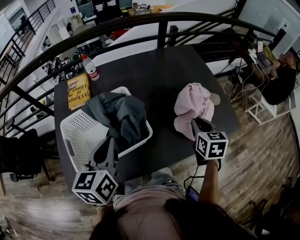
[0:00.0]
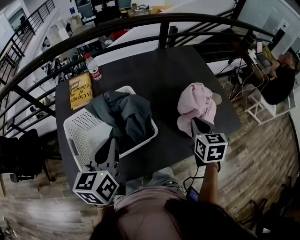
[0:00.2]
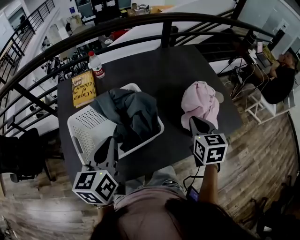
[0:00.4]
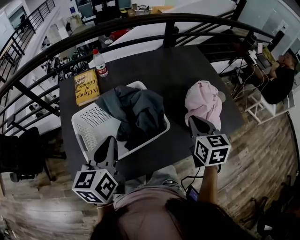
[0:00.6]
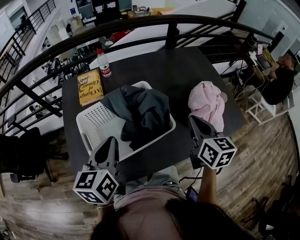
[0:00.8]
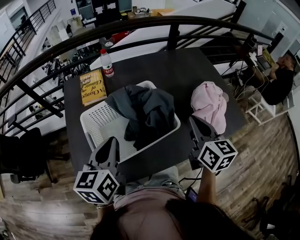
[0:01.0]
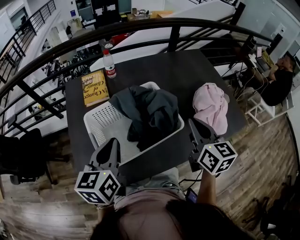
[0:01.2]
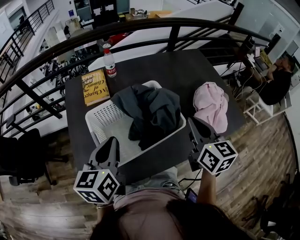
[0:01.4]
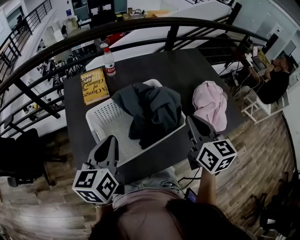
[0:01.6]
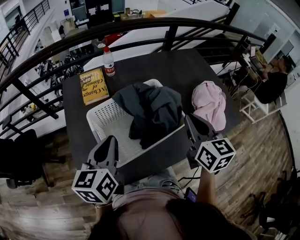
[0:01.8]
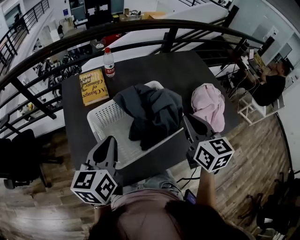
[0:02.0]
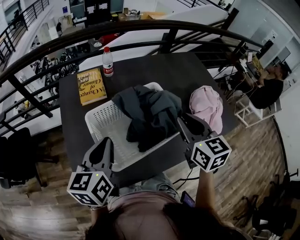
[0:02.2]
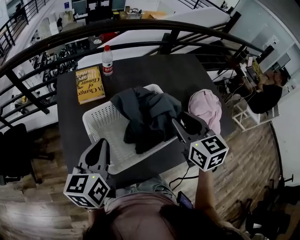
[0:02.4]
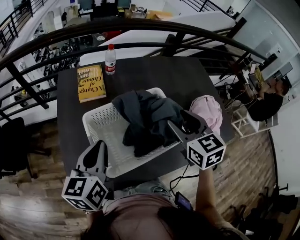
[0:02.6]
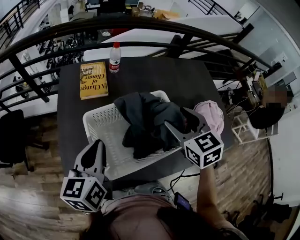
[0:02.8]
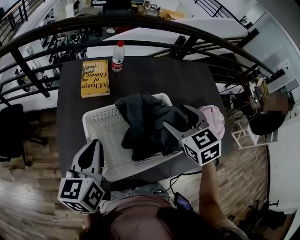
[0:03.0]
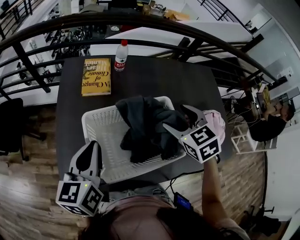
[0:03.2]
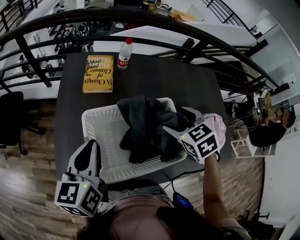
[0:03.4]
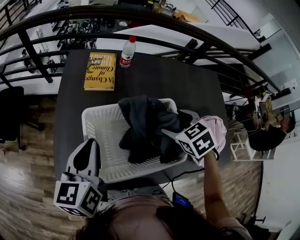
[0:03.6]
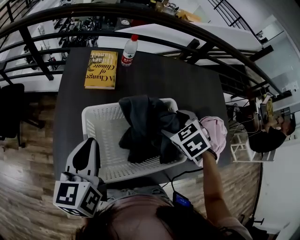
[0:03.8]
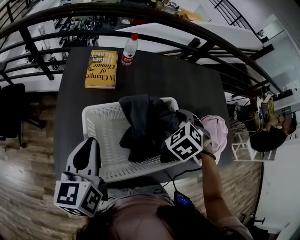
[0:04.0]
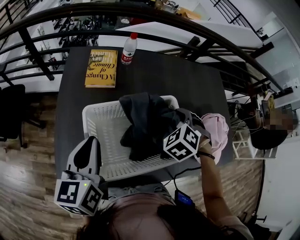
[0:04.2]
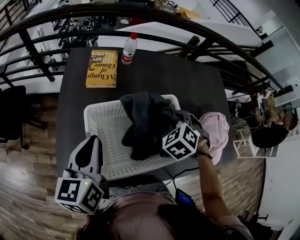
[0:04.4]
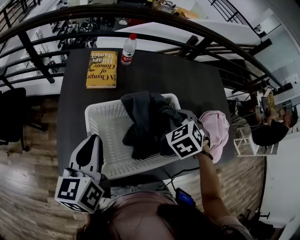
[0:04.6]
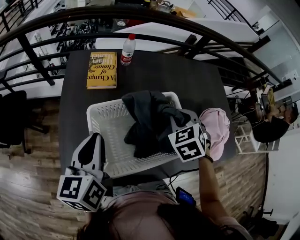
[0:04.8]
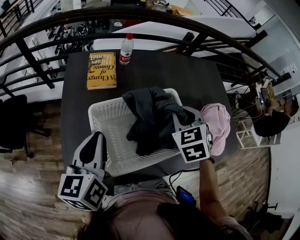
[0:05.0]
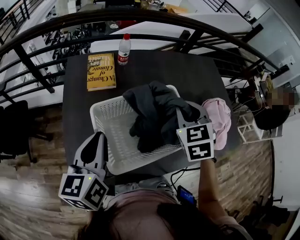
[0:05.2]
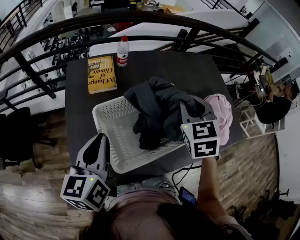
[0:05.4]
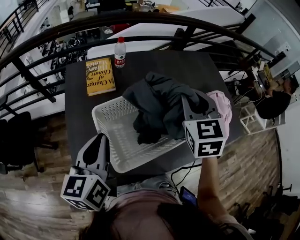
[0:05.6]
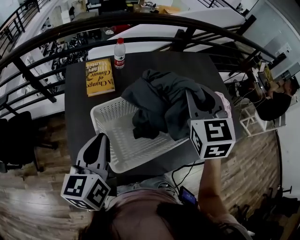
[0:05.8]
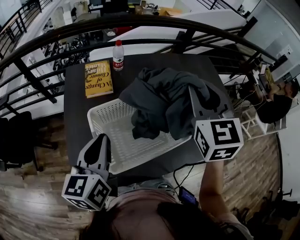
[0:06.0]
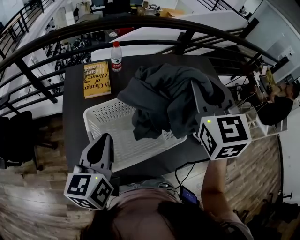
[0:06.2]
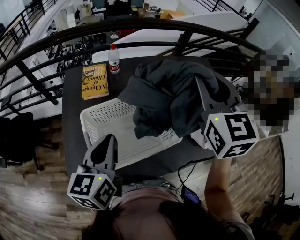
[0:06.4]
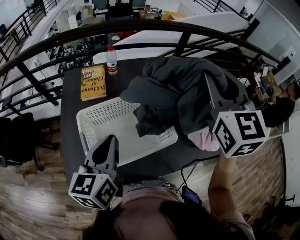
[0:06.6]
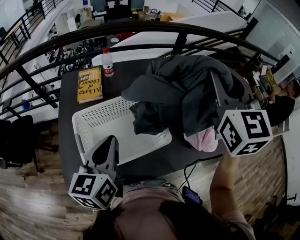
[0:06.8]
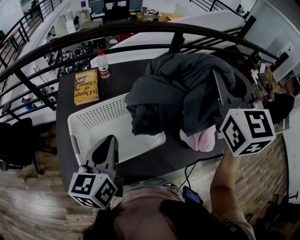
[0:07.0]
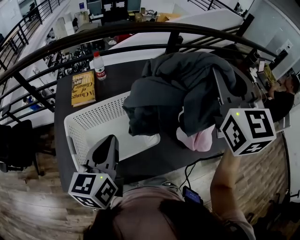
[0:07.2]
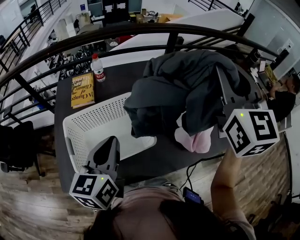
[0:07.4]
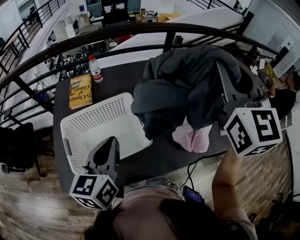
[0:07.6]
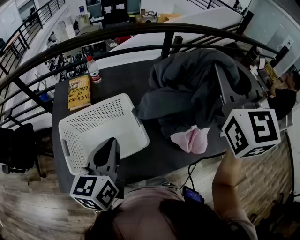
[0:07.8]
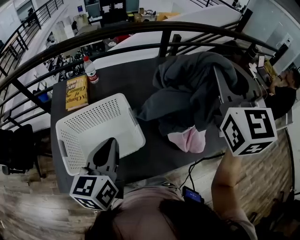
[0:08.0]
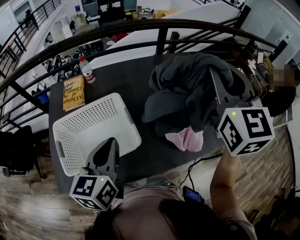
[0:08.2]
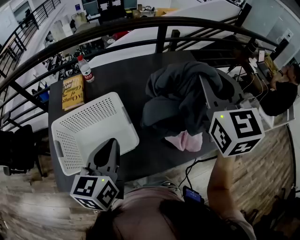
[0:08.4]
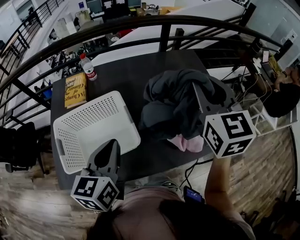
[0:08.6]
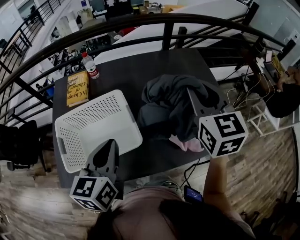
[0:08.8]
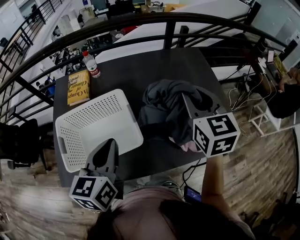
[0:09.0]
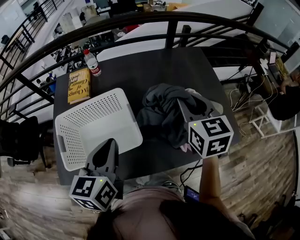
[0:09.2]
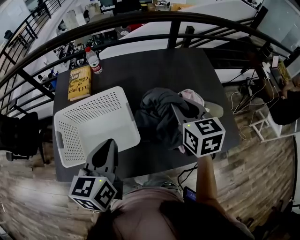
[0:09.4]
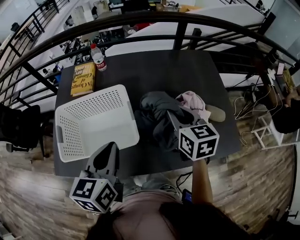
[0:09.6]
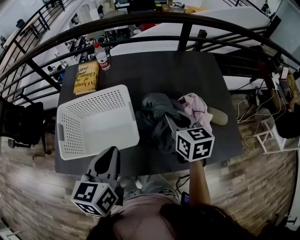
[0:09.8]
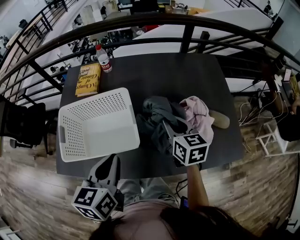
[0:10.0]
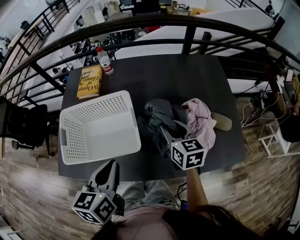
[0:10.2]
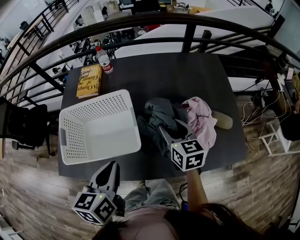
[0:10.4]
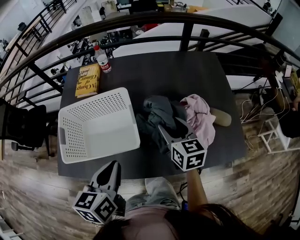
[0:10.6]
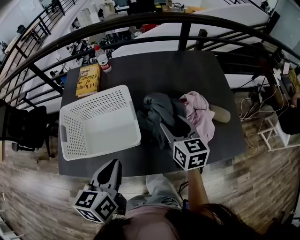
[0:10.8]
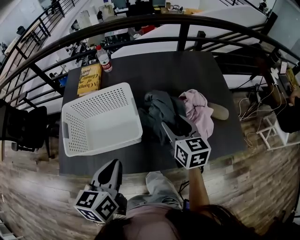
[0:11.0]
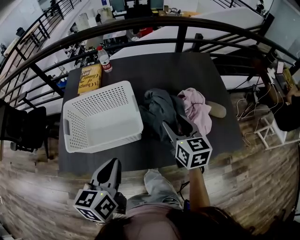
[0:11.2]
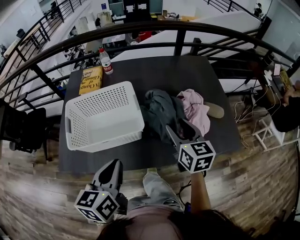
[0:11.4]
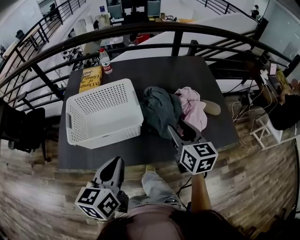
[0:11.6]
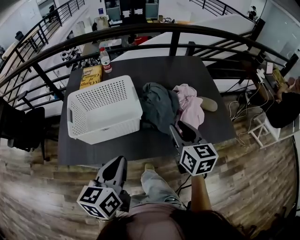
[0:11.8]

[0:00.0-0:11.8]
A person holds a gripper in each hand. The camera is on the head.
0:00.0 to 0:01.4: The left gripper shifts some 15 cm to the left, while the right gripper goes approximately 20 cm to the left and upward, and swivels some 20 degrees.
0:01.4 to 0:03.0: The left gripper travels to the left by some 5 cm, while the right gripper is displaced forward and to the left by roughly 15 cm, changes its angle by some 40 degrees, and opens up.
0:03.0 to 0:04.4: The right gripper moves downward, some 10 cm, changes its angle by about 40 degrees, and closes.
0:04.4 to 0:06.0: The right gripper moves upward, some 25 cm, and angles its fingers upward, by about 40 degrees.
0:06.0 to 0:07.4: The left gripper moves to the right, approximately 20 cm, while the right gripper shifts about 25 cm to the right and upward.
0:07.4 to 0:08.8: The left gripper heads to the right, covering some 5 cm; the right gripper heads downward, covering some 15 cm.
0:08.8 to 0:10.4: The right gripper is displaced downward by about 20 cm, and turns by roughly 30 degrees. The left gripper moves backward and downward, about 5 cm.
0:10.4 to 0:11.8: The right gripper heads backward and upward, covering approximately 20 cm. Meanwhile the left gripper moves backward, approximately 15 cm.

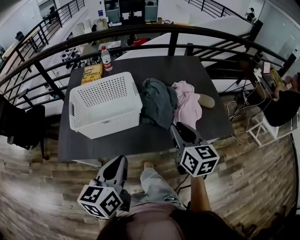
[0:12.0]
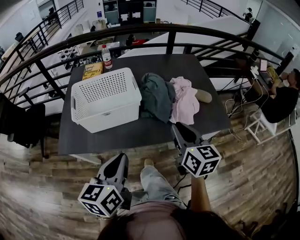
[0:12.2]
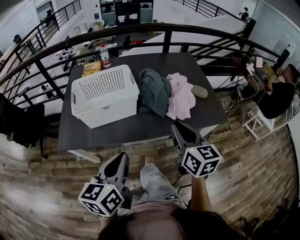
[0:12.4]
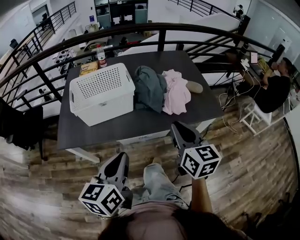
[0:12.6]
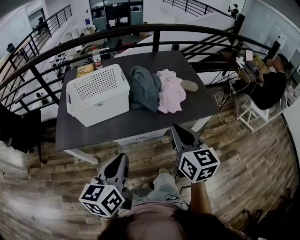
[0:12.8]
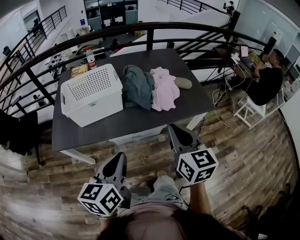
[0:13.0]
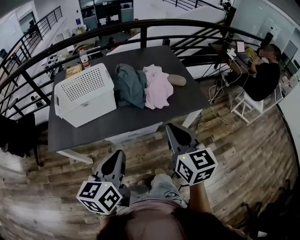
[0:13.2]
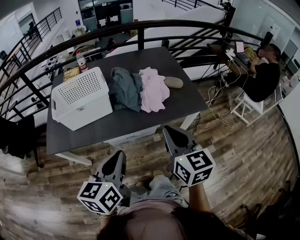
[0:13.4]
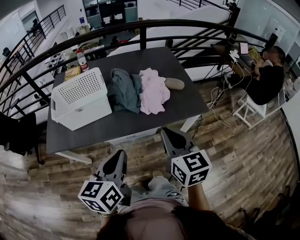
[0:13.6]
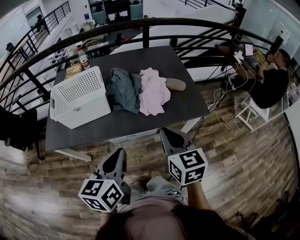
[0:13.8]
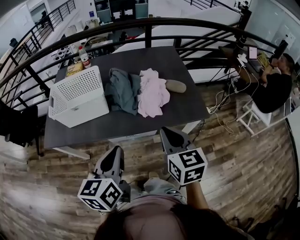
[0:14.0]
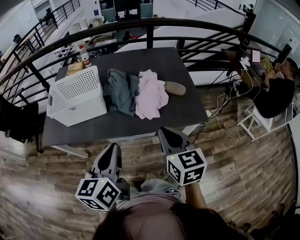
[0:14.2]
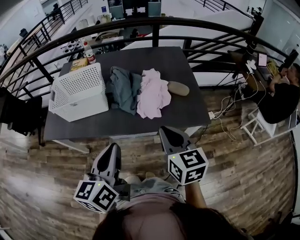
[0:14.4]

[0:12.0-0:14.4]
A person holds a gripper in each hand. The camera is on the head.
0:12.0 to 0:13.2: The right gripper heads backward, covering about 20 cm; the left gripper goes roughly 15 cm backward and to the right.
0:13.2 to 0:14.4: The two grippers go about 15 cm to the right and forward.

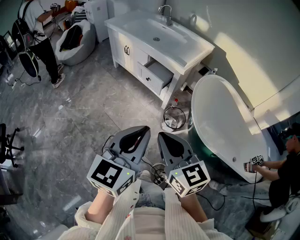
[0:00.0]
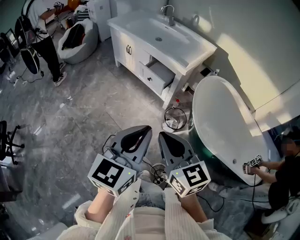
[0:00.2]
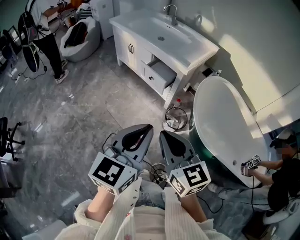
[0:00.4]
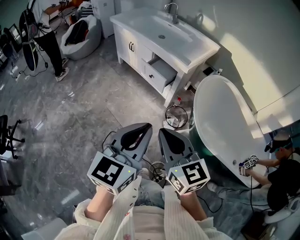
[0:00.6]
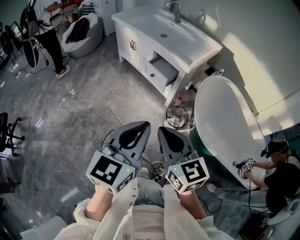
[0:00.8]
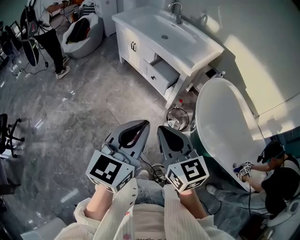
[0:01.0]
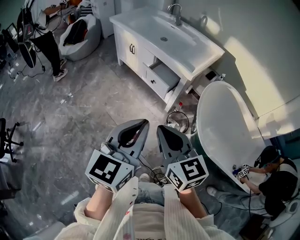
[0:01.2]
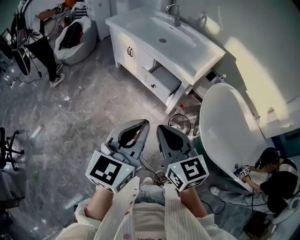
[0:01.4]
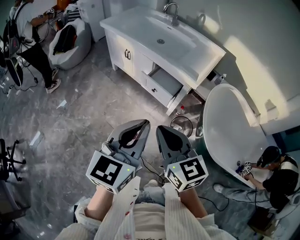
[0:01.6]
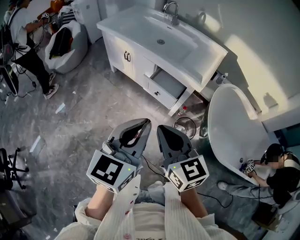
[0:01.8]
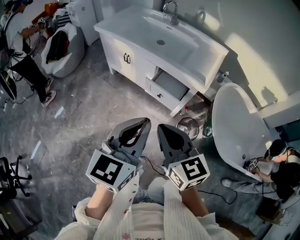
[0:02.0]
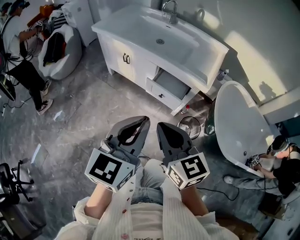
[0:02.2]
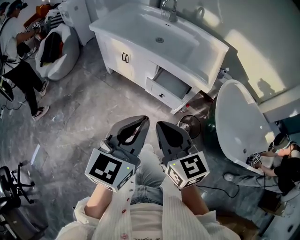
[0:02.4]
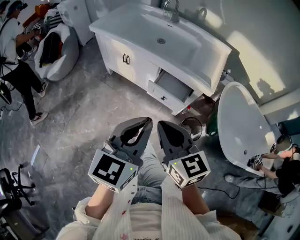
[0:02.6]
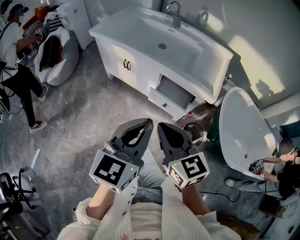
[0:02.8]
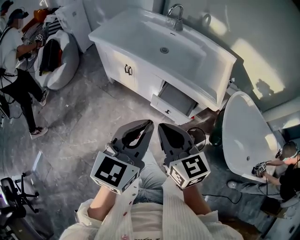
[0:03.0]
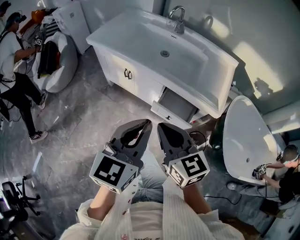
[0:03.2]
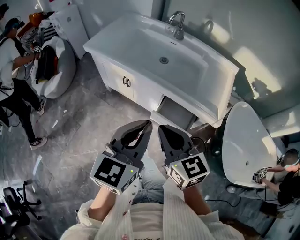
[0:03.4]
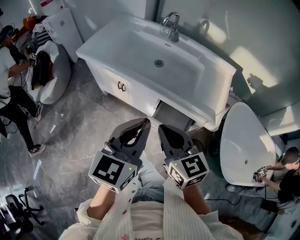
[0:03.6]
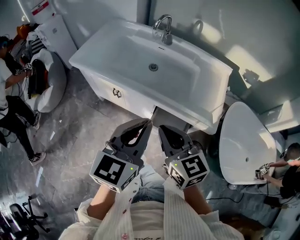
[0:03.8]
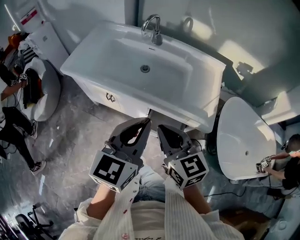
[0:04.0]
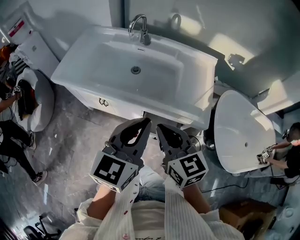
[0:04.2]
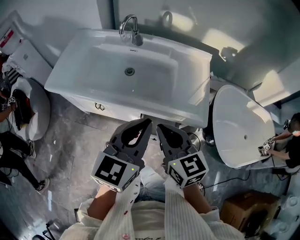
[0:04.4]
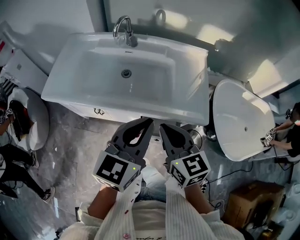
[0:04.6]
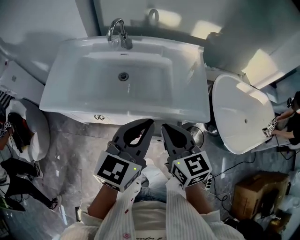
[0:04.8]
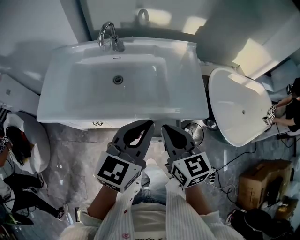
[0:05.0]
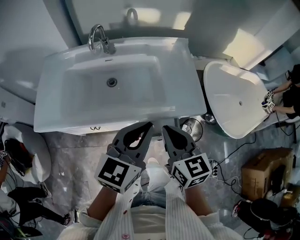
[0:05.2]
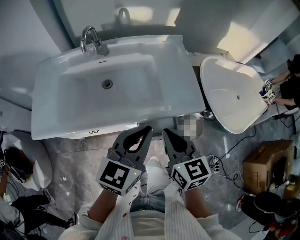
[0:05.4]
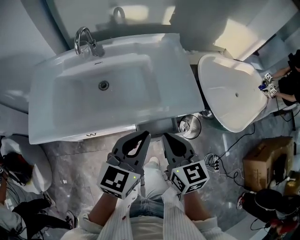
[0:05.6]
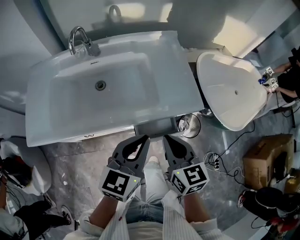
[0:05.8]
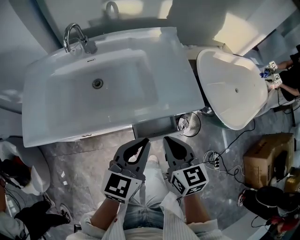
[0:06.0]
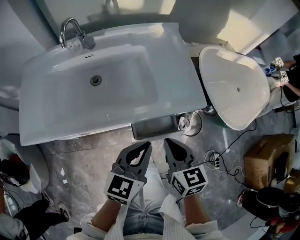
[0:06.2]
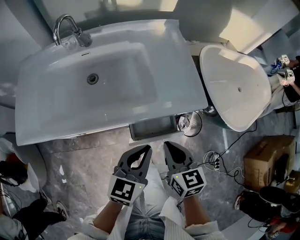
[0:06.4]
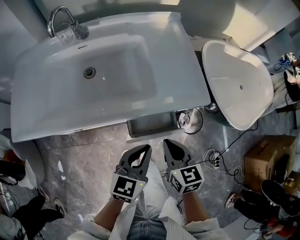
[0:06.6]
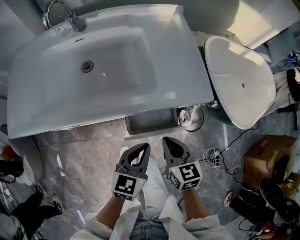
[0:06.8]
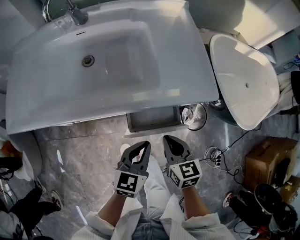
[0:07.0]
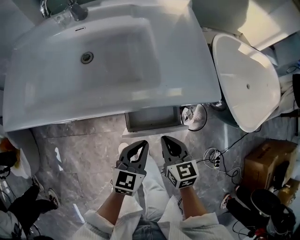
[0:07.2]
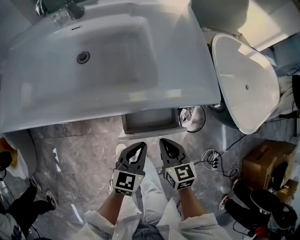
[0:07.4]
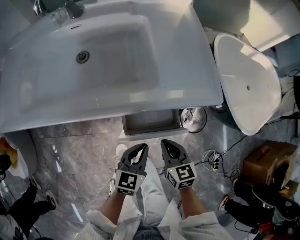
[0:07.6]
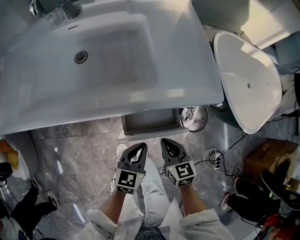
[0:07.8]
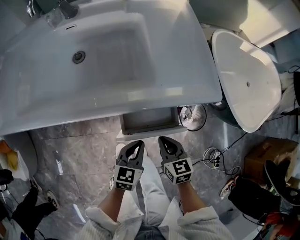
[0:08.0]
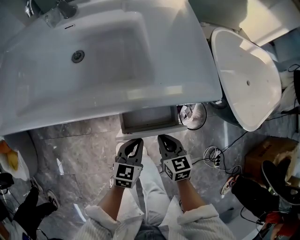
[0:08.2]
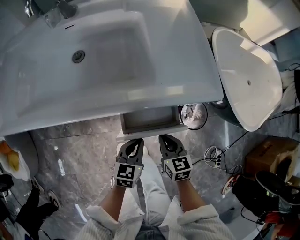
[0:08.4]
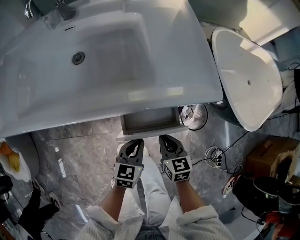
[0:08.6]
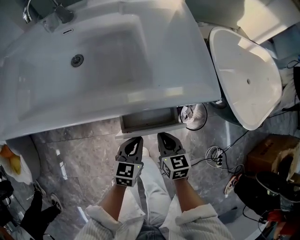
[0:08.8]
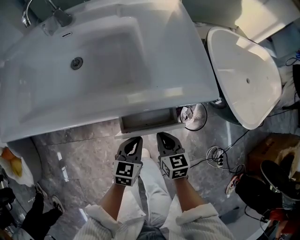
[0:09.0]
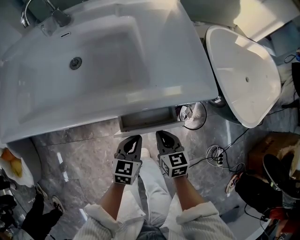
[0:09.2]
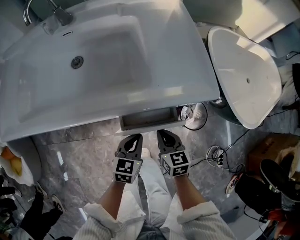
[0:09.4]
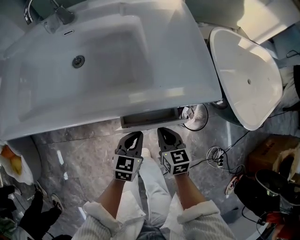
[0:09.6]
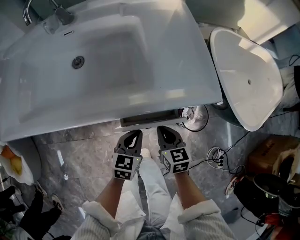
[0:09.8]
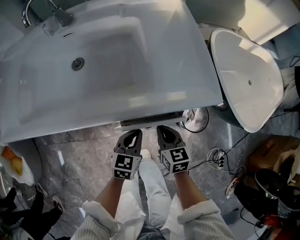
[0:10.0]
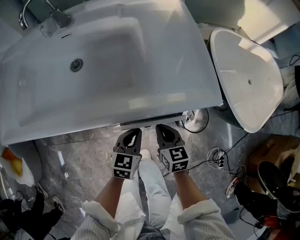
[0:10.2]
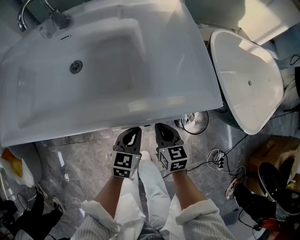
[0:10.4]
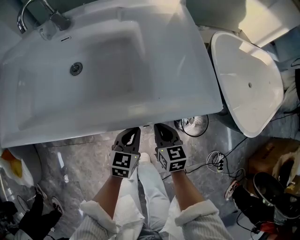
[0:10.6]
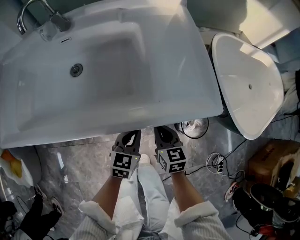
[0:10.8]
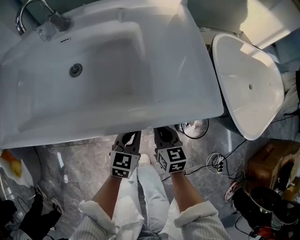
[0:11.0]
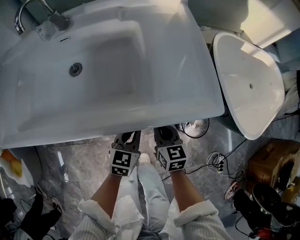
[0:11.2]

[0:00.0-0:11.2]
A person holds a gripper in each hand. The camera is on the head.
0:00.0 to 0:01.6: Both grippers travel together forward, roughly 15 cm.
0:01.6 to 0:03.2: Both grippers move forward and to the left, about 30 cm.
0:03.2 to 0:04.8: The right gripper shifts by some 20 cm, and turns by some 30 degrees. Meanwhile the left gripper moves approximately 20 cm, and turns by roughly 30 degrees.
0:04.8 to 0:06.4: The right gripper goes about 15 cm downward and to the right, and changes its angle by about 20 degrees; the left gripper heads downward, covering roughly 20 cm.
0:06.4 to 0:08.0: Both grippers travel together downward, approximately 20 cm.
0:08.0 to 0:09.6: The grippers move only a little.
0:09.6 to 0:11.2: Both grippers travel together forward, roughly 5 cm.
